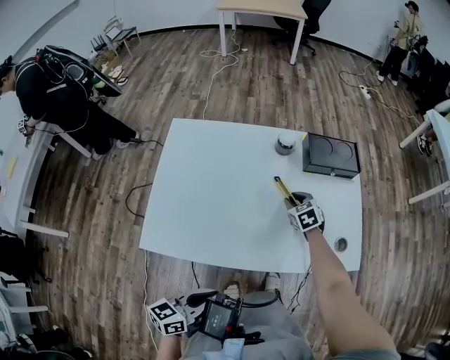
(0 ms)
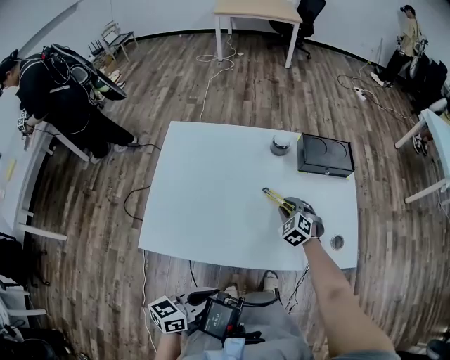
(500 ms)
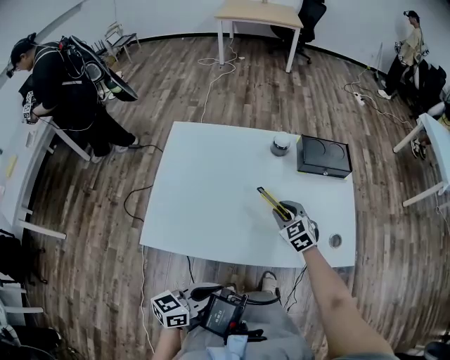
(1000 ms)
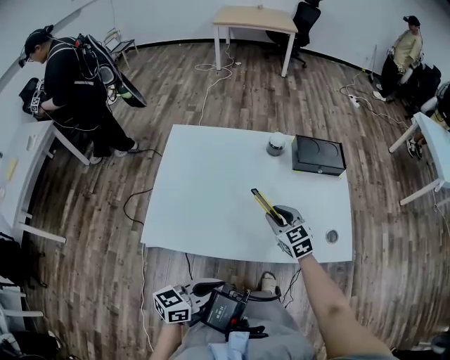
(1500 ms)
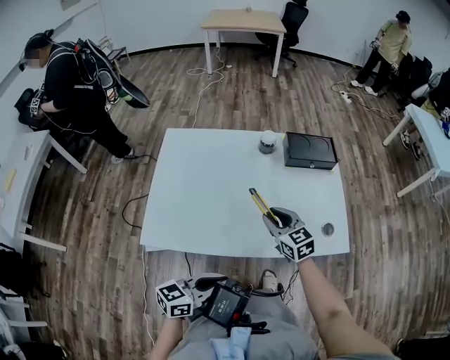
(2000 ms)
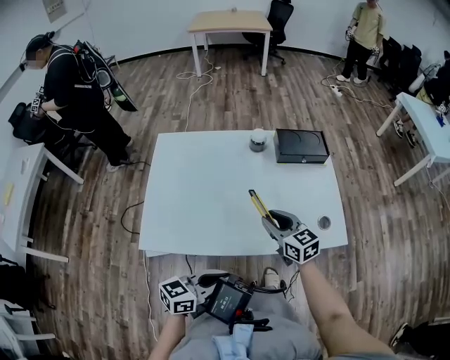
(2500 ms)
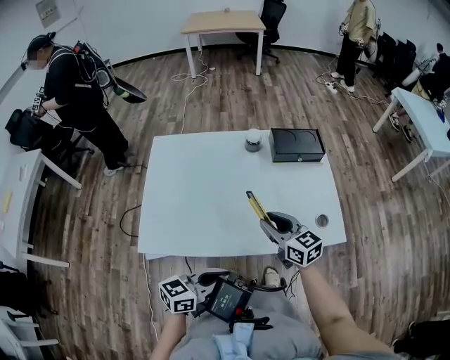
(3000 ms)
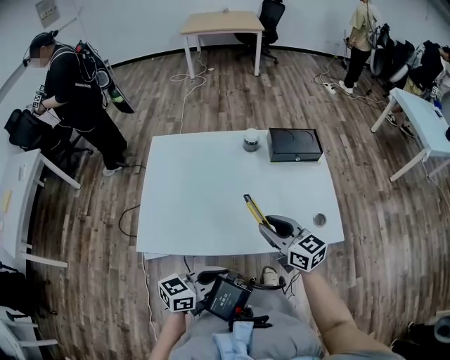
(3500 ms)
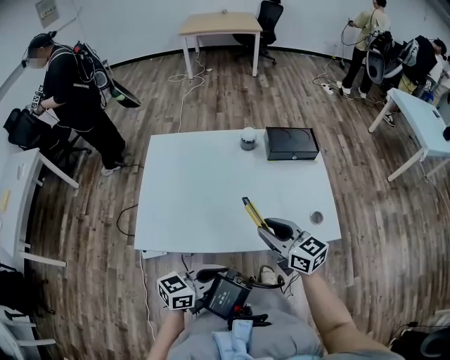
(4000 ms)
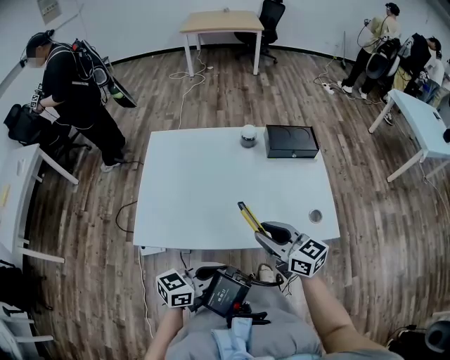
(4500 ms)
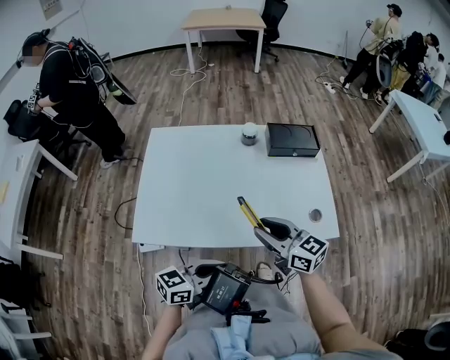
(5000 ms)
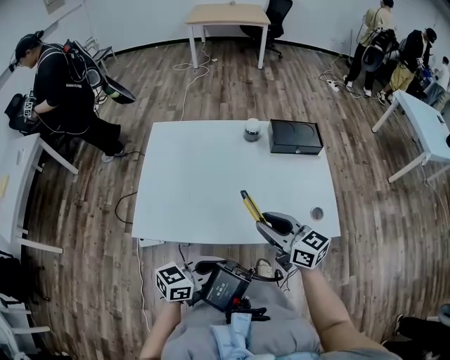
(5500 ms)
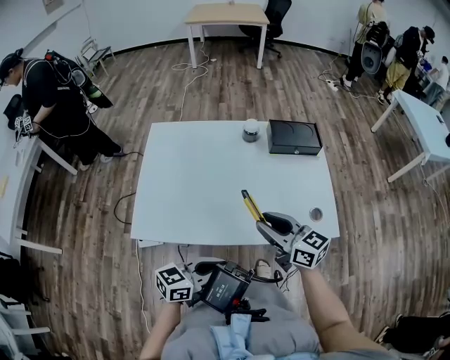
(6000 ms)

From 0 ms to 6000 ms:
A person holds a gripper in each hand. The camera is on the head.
From 0 ms to 2000 ms: The right gripper shifts roughly 20 cm backward and upward, and swivels approximately 30 degrees. Meanwhile the left gripper changes place by some 5 cm.
From 2000 ms to 4000 ms: The right gripper heads backward and upward, covering approximately 10 cm.
From 4000 ms to 6000 ms: There are only small adjustments of the grippers.

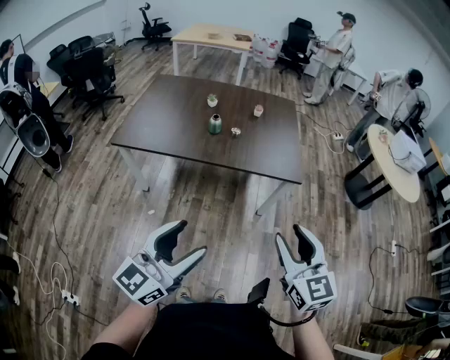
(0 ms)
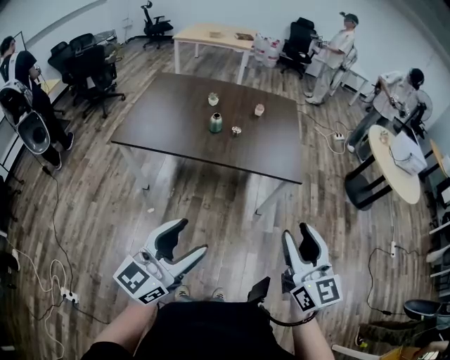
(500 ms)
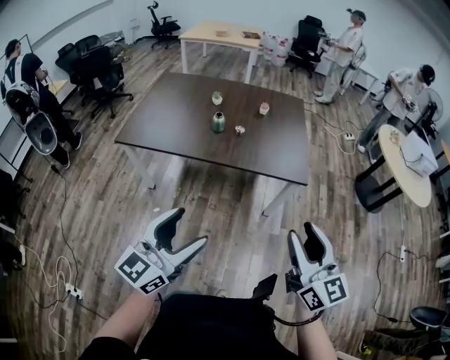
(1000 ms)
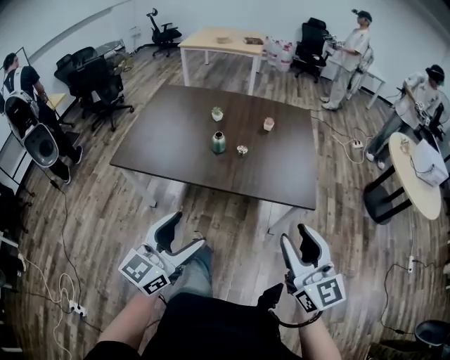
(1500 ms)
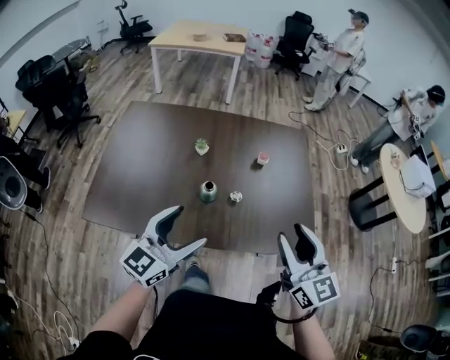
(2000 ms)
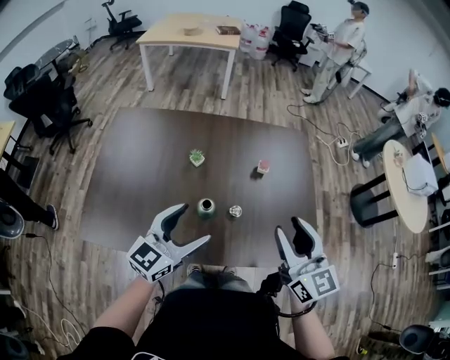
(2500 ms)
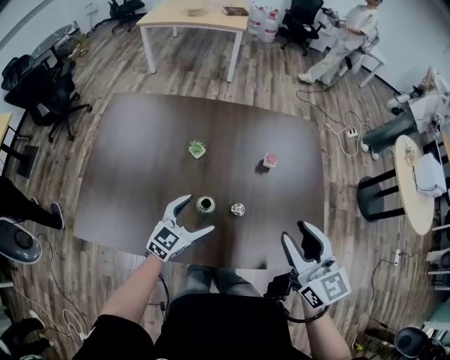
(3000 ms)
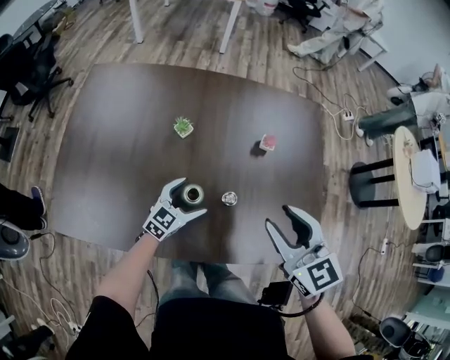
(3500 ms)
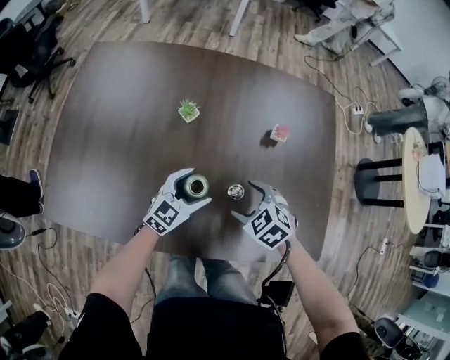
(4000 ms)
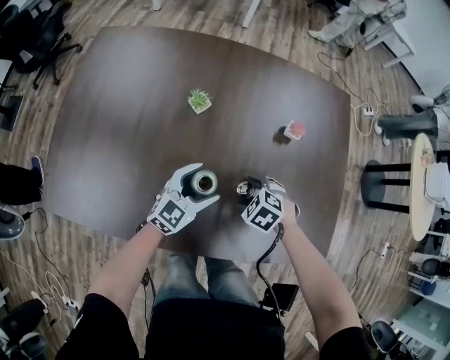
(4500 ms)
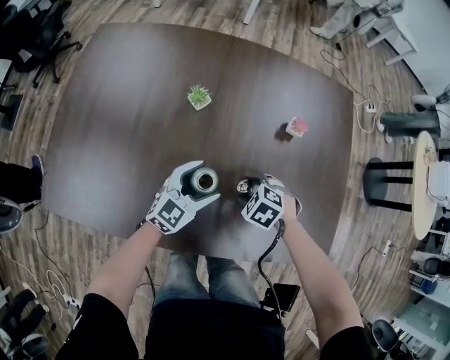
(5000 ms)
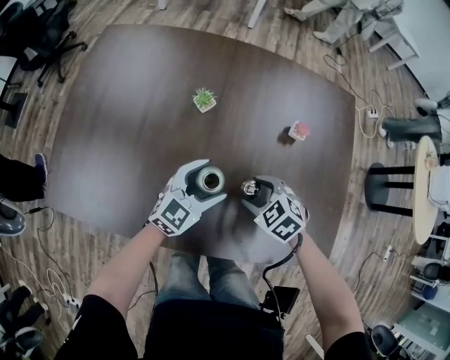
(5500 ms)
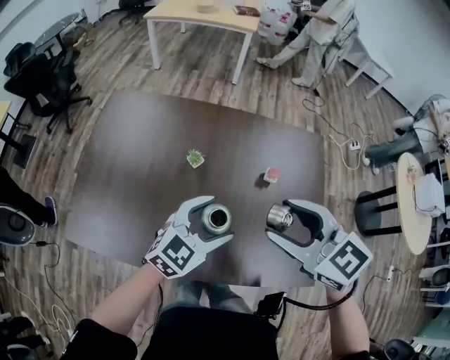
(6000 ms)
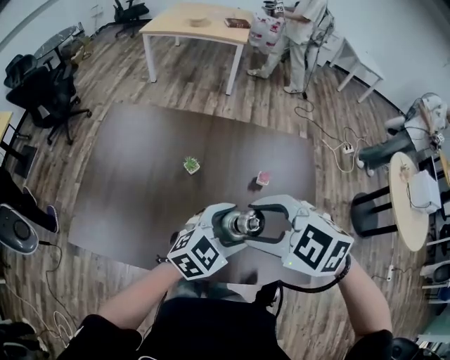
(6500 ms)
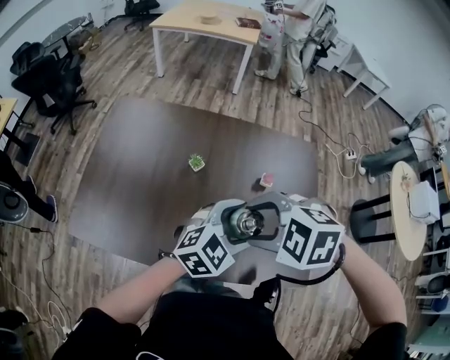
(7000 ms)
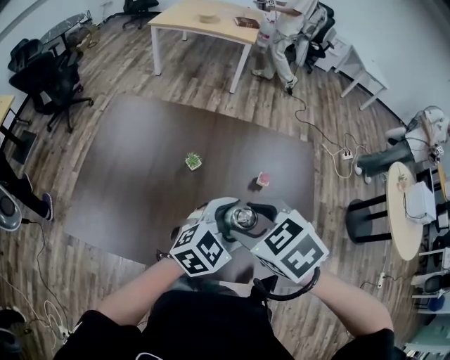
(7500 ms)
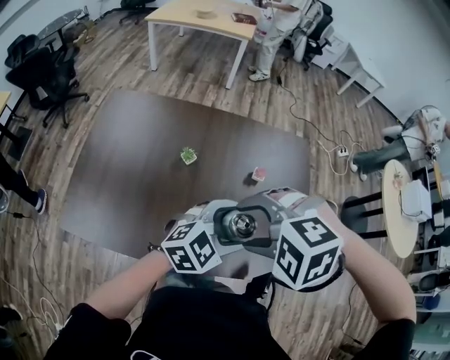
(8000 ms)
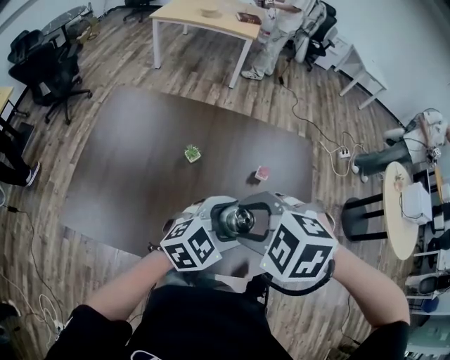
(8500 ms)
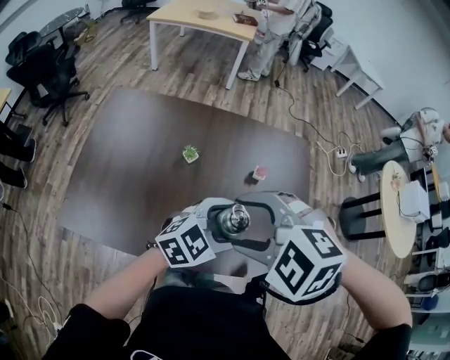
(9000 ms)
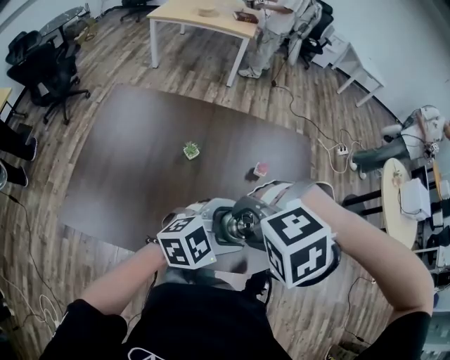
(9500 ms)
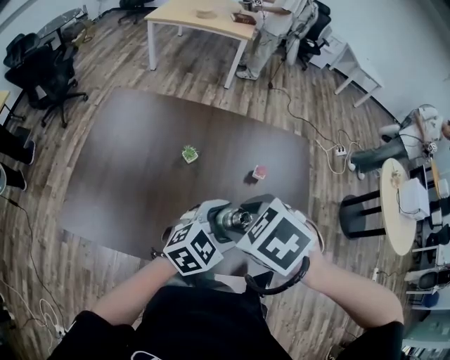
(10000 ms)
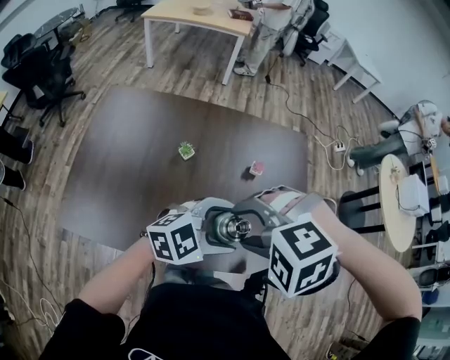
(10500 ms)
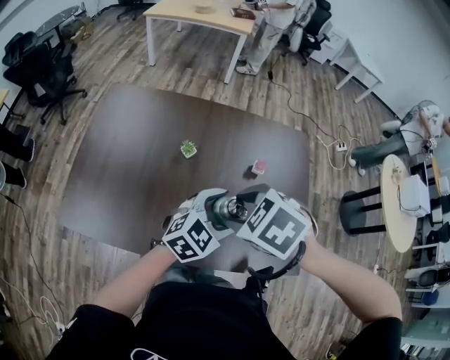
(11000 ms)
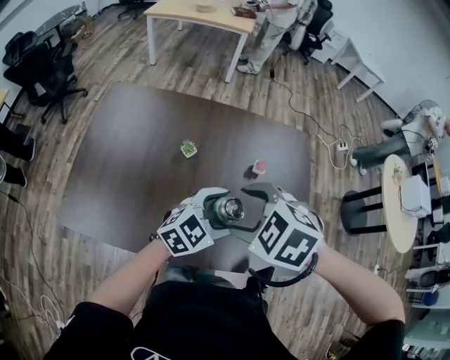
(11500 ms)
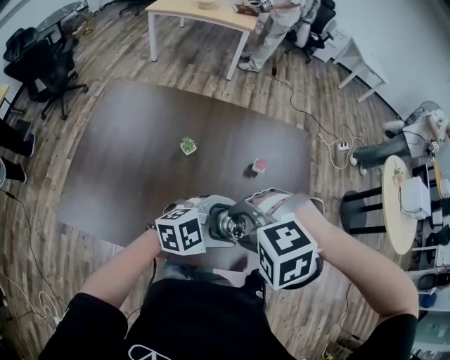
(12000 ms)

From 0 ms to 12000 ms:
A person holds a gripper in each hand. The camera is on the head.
From 0 ms to 2000 ms: Both grippers are carried forward, approximately 50 cm.
From 2000 ms to 4000 ms: The two grippers go approximately 40 cm downward and forward. The left gripper turns by roughly 20 degrees. Meanwhile the right gripper points its fingers about 60 degrees further downward, and opens.
From 4000 ms to 6000 ms: Both grippers travel together upward, roughly 30 cm. The right gripper tilts its fingers approximately 30 degrees upward.
From 6000 ms to 8000 ms: The left gripper ends up roughly 10 cm from where it was. Meanwhile the right gripper changes place by approximately 10 cm, and tilts its fingers about 40 degrees downward.
From 8000 ms to 10000 ms: The right gripper rolls clockwise, seen from behind, by approximately 50 degrees.
From 10000 ms to 12000 ms: The left gripper rotates roughly 20 degrees. The right gripper rolls counterclockwise, seen from behind, by about 50 degrees.

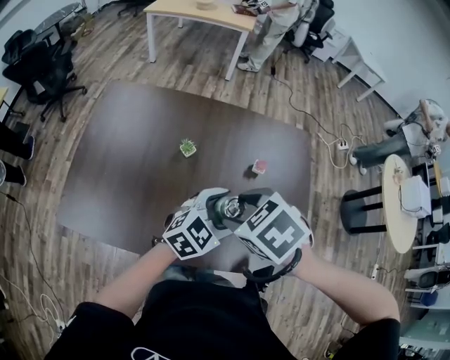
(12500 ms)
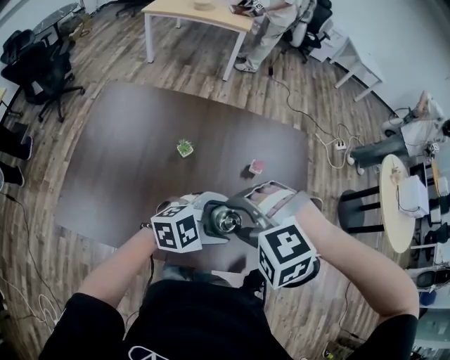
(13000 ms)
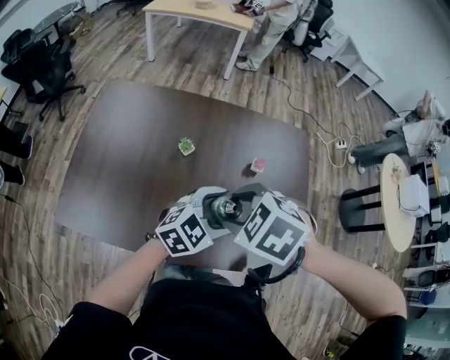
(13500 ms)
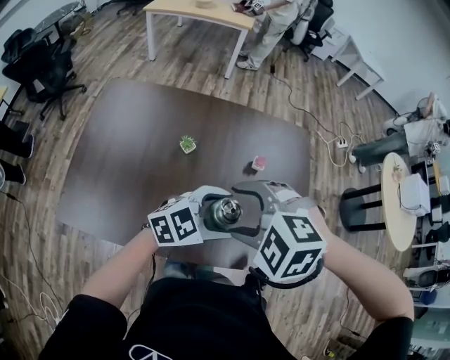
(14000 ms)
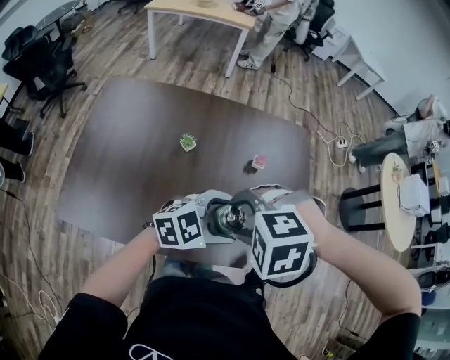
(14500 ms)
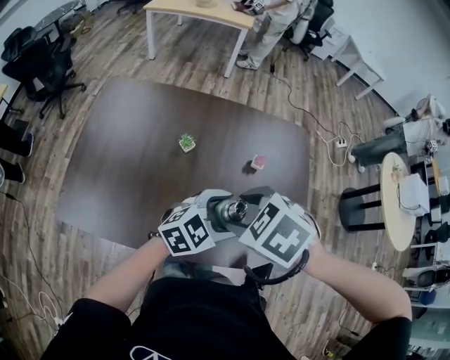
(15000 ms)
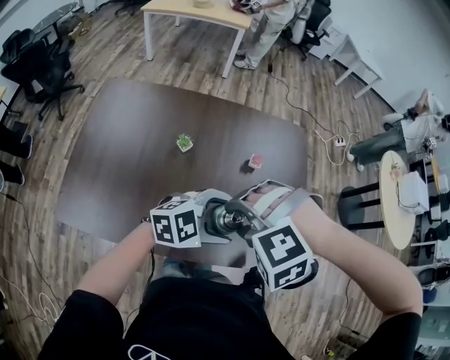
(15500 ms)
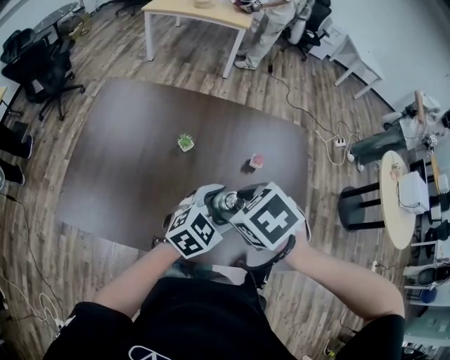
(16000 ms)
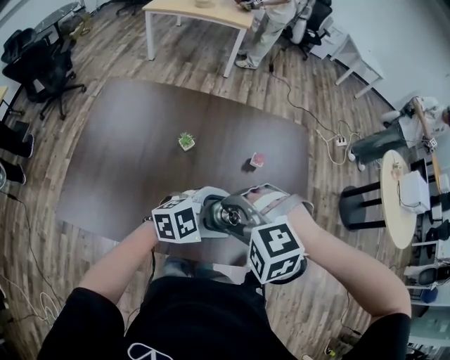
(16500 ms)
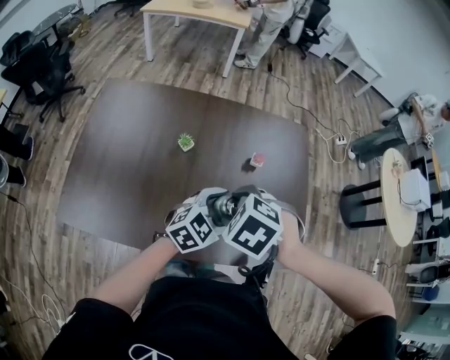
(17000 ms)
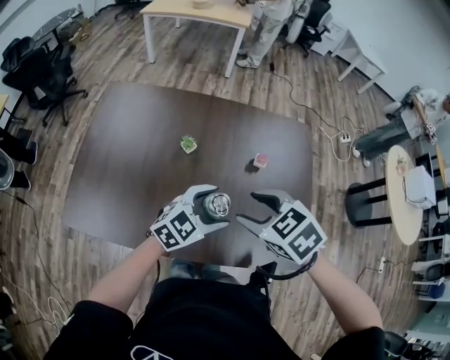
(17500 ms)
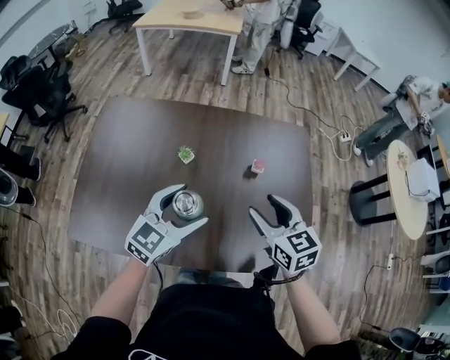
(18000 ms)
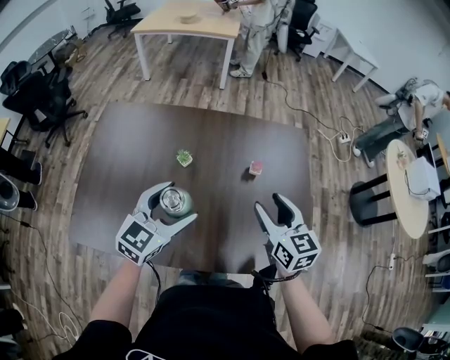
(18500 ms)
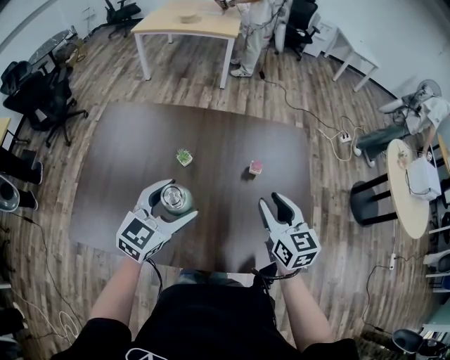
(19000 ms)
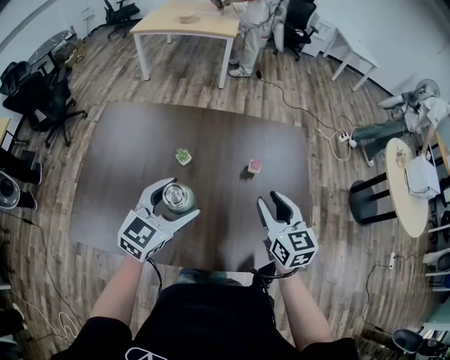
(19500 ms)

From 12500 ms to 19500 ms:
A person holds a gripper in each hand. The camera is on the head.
From 12500 ms to 14500 ms: The right gripper shifts by roughly 5 cm, and twists approximately 50 degrees counterclockwise, seen from behind. The left gripper ends up some 5 cm from where it was, and changes its angle by roughly 20 degrees.
From 14500 ms to 16000 ms: The right gripper twists some 50 degrees clockwise, seen from behind. The left gripper rotates some 30 degrees.
From 17500 ms to 19500 ms: The right gripper shifts roughly 10 cm to the right and forward, and points its fingers some 40 degrees further upward. Meanwhile the left gripper shifts about 10 cm upward and to the left, and turns by some 20 degrees.

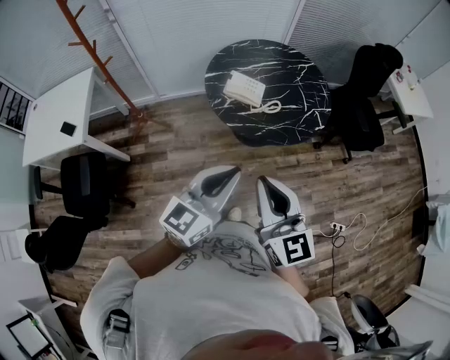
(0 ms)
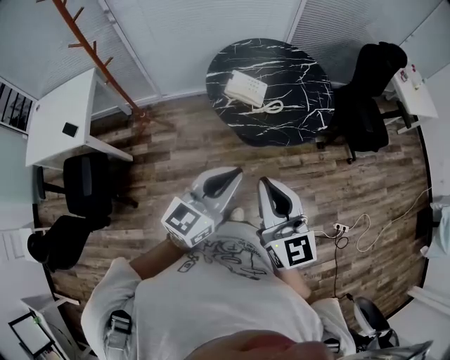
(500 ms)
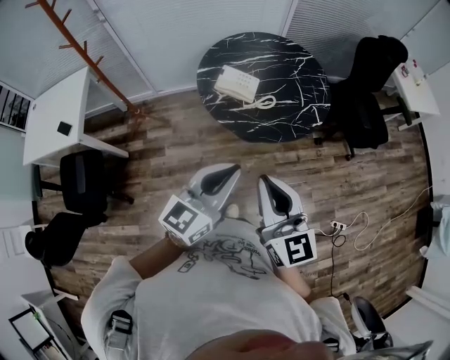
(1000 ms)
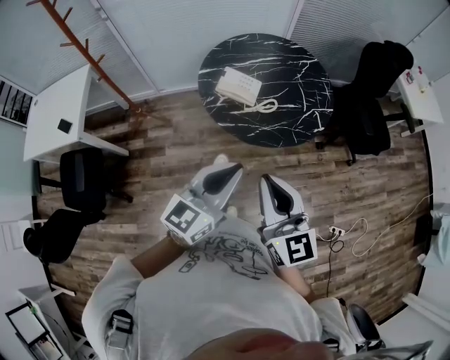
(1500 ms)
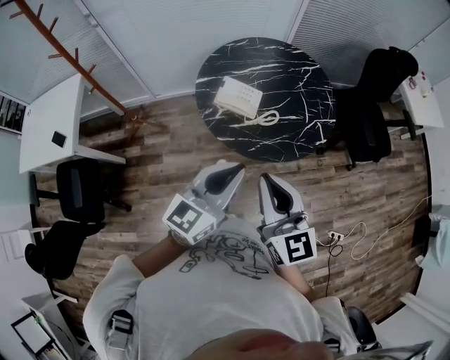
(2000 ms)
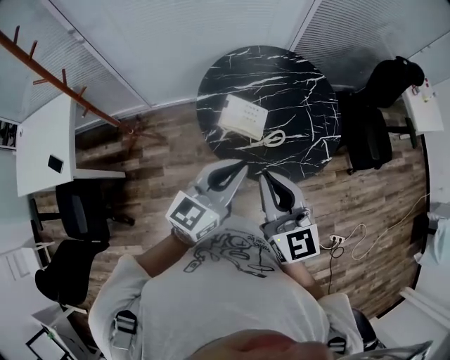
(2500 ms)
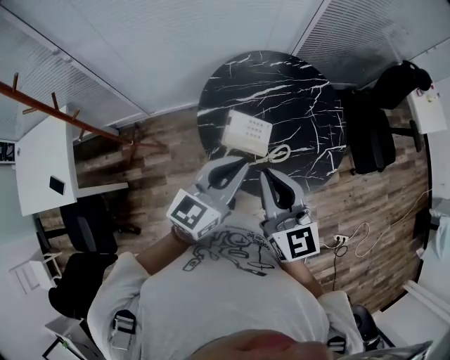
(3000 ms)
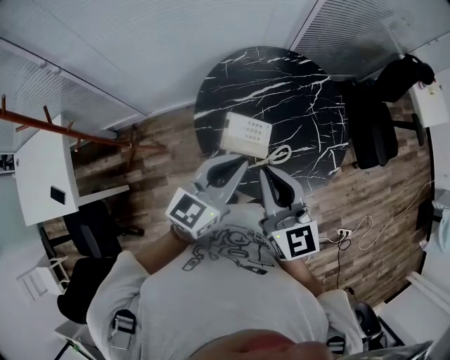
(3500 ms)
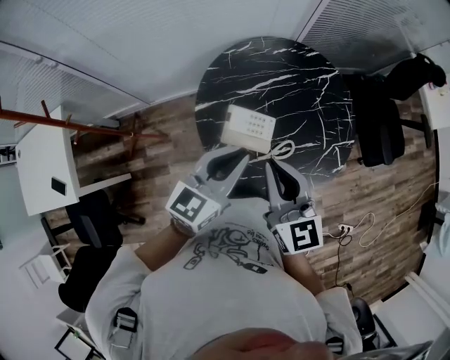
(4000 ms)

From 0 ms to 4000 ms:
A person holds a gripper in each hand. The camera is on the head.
From 0 ms to 2000 ms: Both grippers travel together forward, roughly 15 cm.
From 2000 ms to 4000 ms: Both grippers move forward, about 35 cm.
